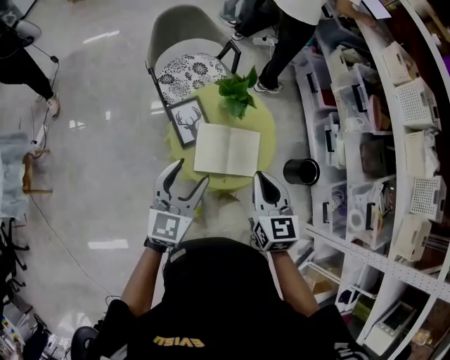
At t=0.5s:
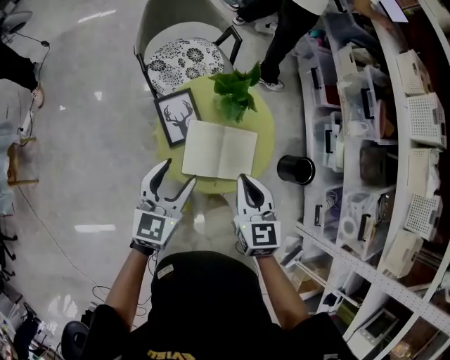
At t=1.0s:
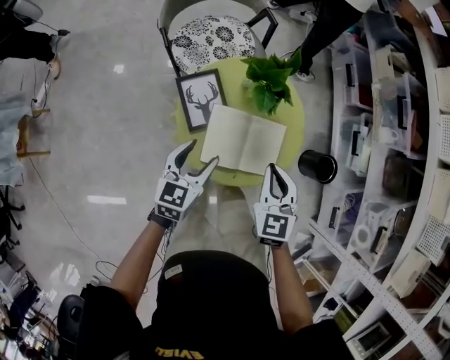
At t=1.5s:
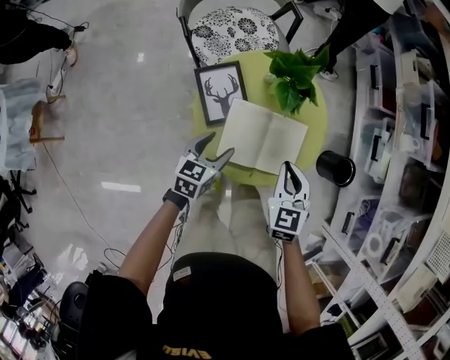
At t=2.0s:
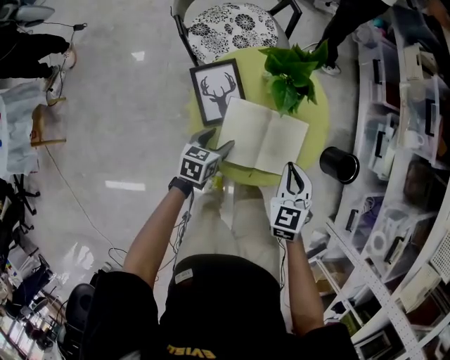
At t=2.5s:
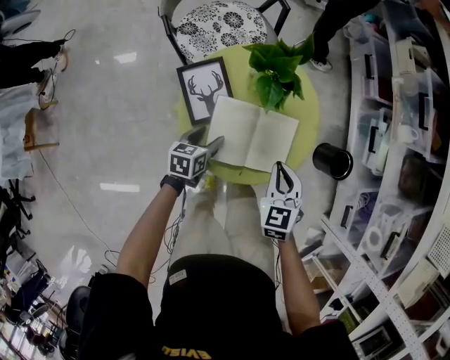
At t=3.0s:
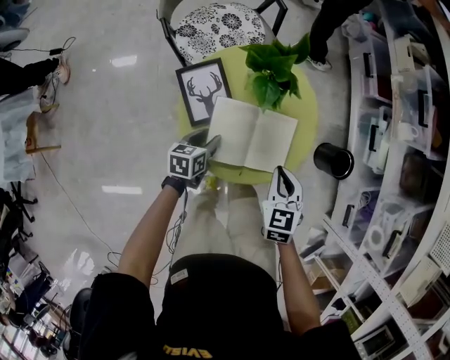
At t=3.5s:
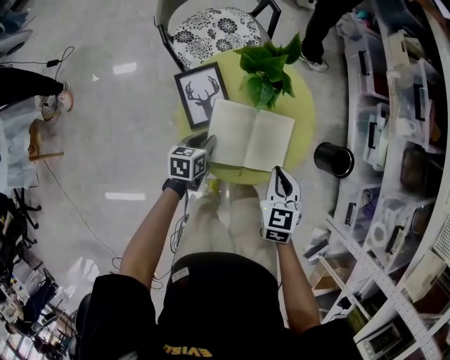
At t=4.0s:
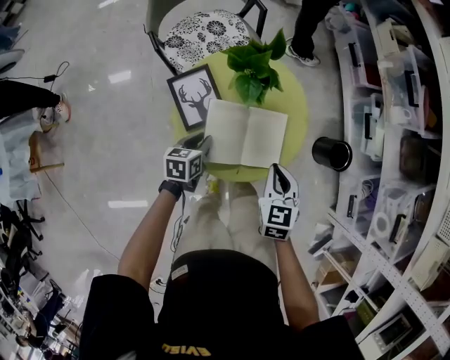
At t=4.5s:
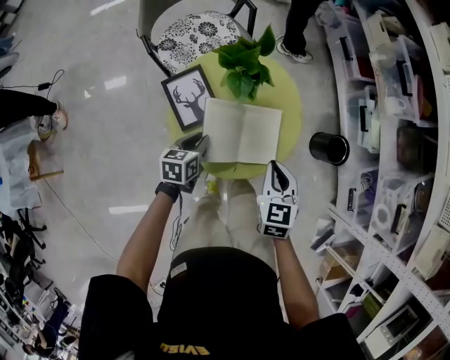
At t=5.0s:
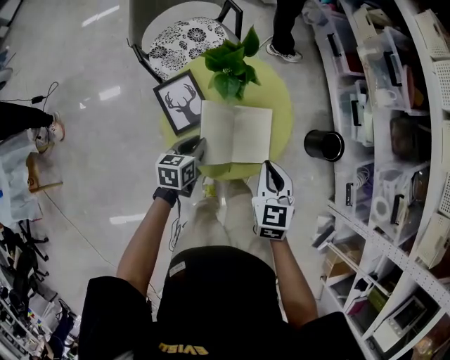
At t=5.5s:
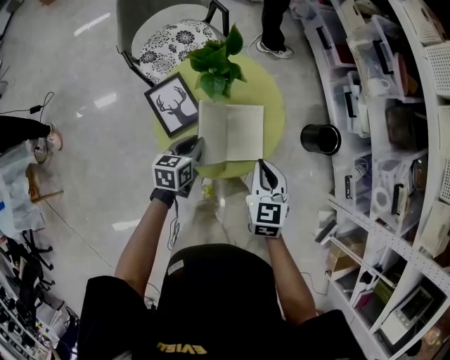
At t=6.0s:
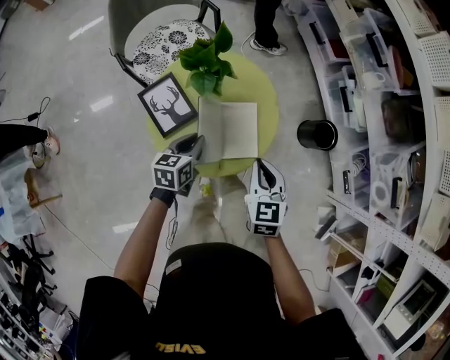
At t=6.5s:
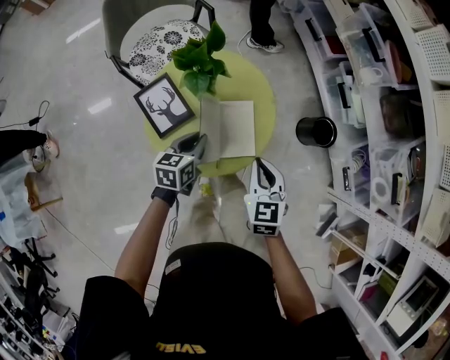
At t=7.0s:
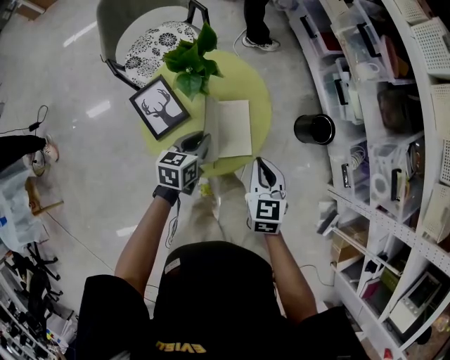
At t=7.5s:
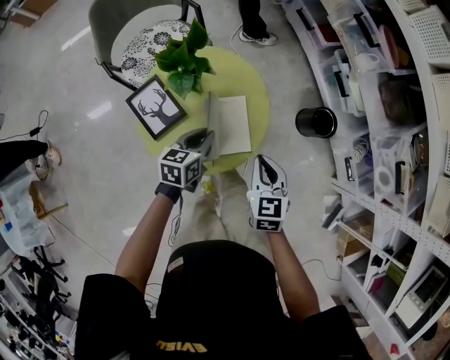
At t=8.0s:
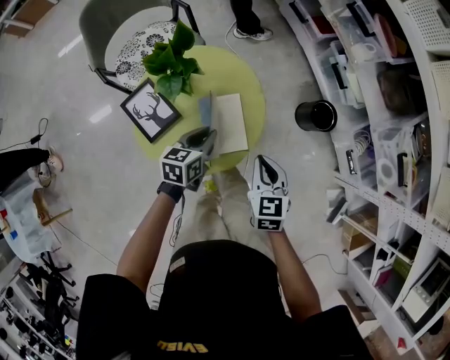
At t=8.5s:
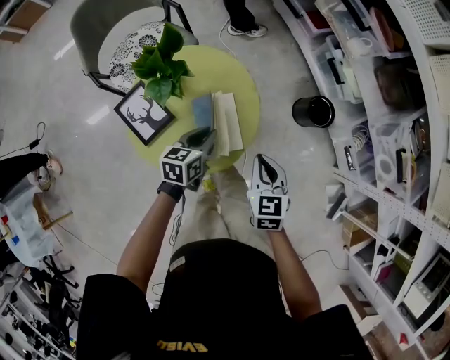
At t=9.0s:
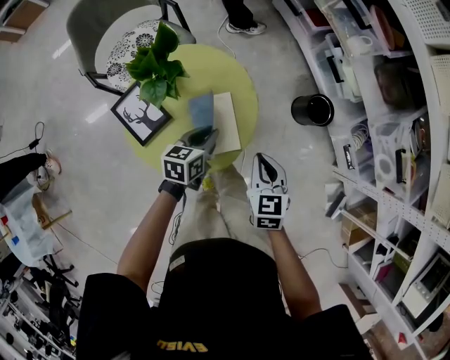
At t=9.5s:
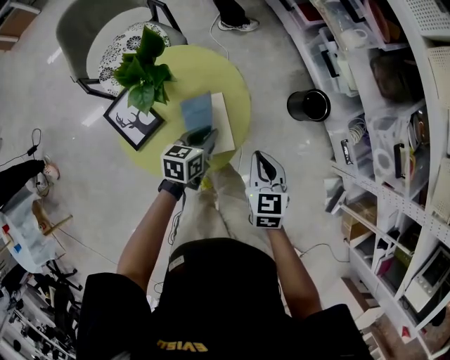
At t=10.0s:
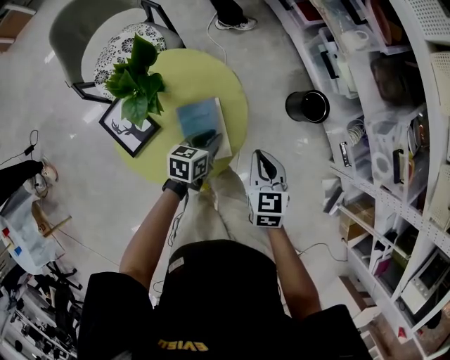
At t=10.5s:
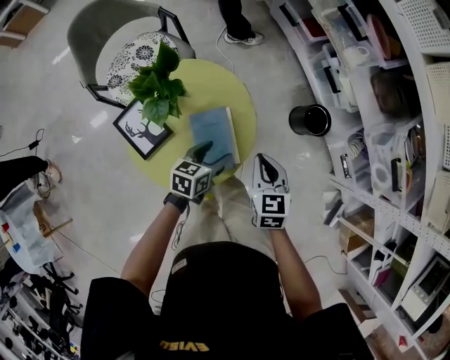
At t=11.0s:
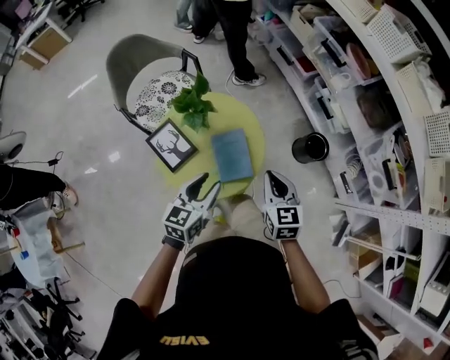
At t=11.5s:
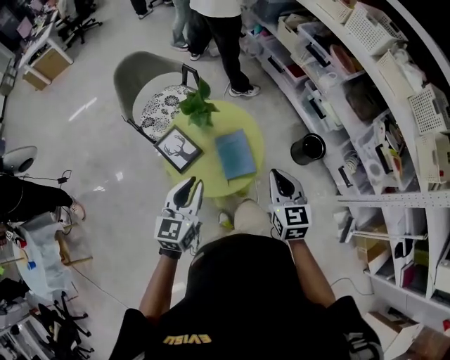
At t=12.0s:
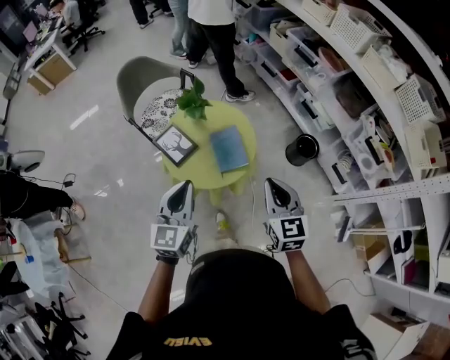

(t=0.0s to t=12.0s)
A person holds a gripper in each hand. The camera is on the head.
t=0.0s - t=2.0s: Both grippers move downward, some 30 cm. The right gripper rotates about 20 degrees; the left gripper swivels about 40 degrees.
t=2.0s - t=4.0s: The left gripper closes up.
t=4.0s - t=6.0s: The right gripper shifts by some 5 cm. Meanwhile the left gripper shifts about 10 cm upward and to the right.
t=6.0s - t=8.0s: The left gripper travels to the right by about 10 cm; the right gripper heads to the right, covering about 5 cm.
t=8.0s - t=10.0s: The right gripper goes some 5 cm forward; the left gripper travels to the right and downward by approximately 10 cm.
t=10.0s - t=12.0s: The grippers both shift upward and backward by about 40 cm. The right gripper rotates about 20 degrees; the left gripper changes its angle by some 50 degrees, and opens and closes again.

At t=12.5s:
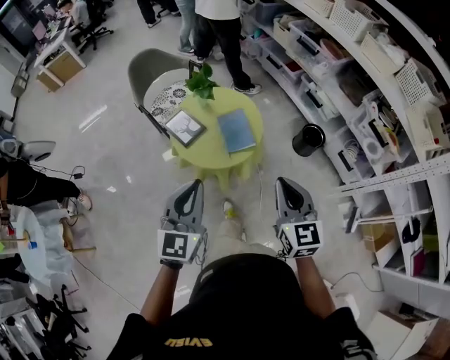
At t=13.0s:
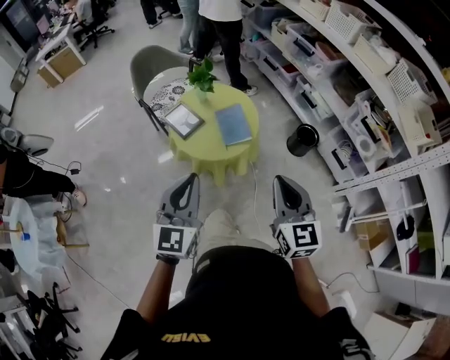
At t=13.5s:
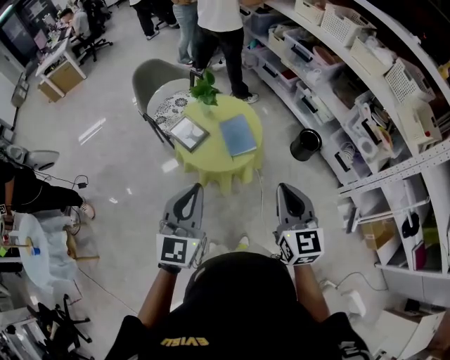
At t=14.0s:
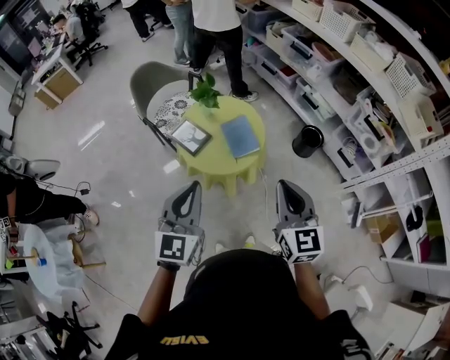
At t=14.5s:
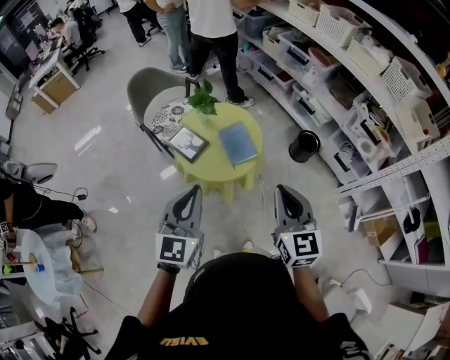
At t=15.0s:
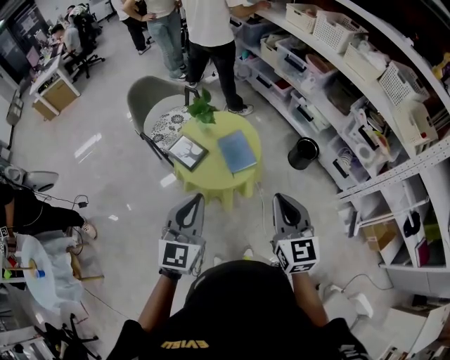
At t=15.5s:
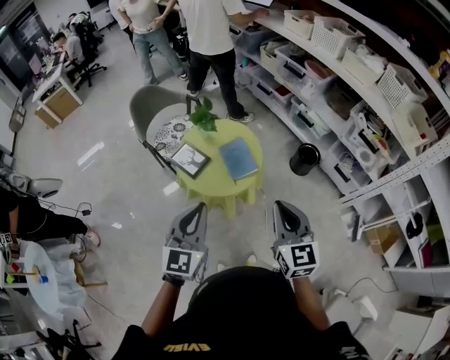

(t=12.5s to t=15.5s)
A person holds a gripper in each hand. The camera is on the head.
t=12.5s - t=14.0s: The left gripper shifts approximately 5 cm to the left; the right gripper goes approximately 5 cm upward.
t=14.0s - t=15.5s: The grippers move only a little.

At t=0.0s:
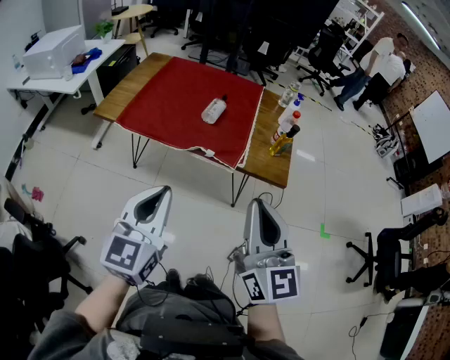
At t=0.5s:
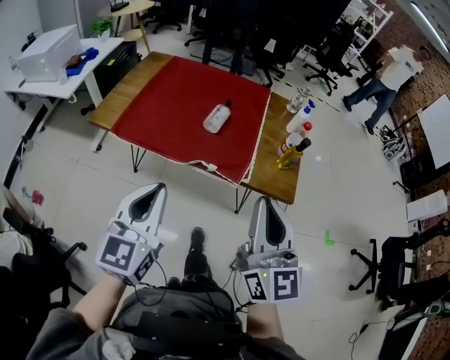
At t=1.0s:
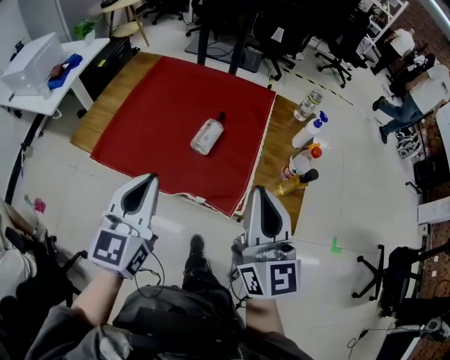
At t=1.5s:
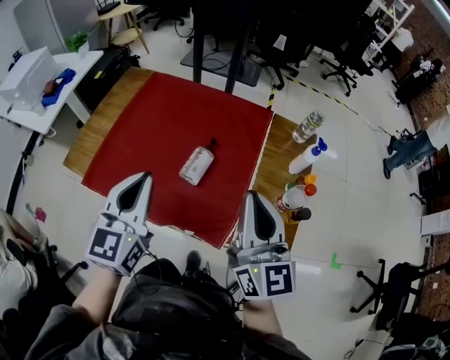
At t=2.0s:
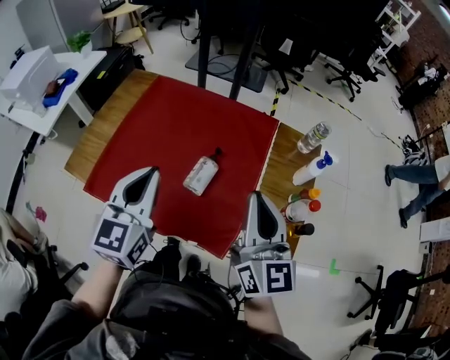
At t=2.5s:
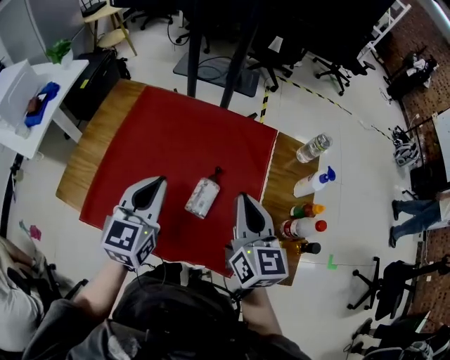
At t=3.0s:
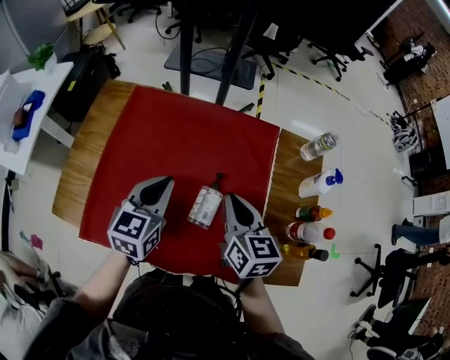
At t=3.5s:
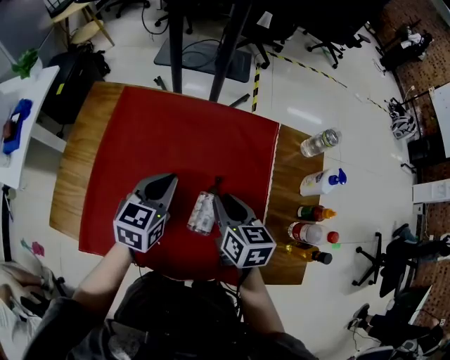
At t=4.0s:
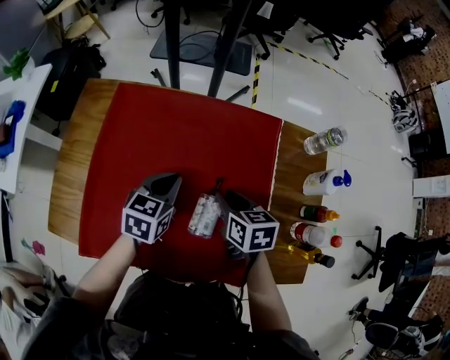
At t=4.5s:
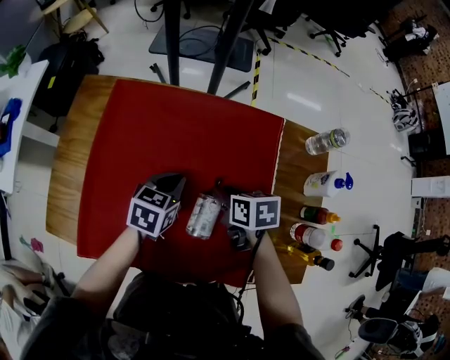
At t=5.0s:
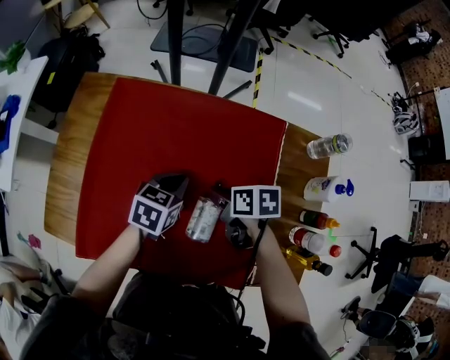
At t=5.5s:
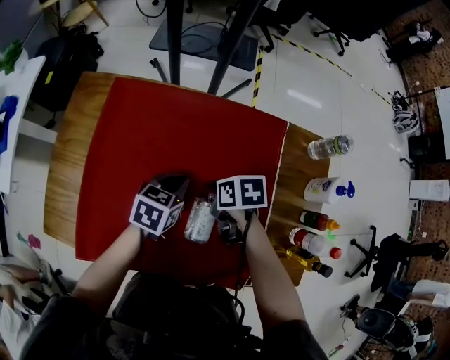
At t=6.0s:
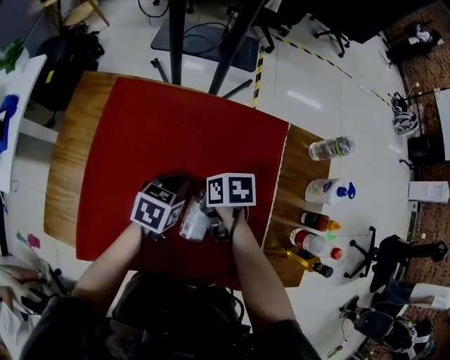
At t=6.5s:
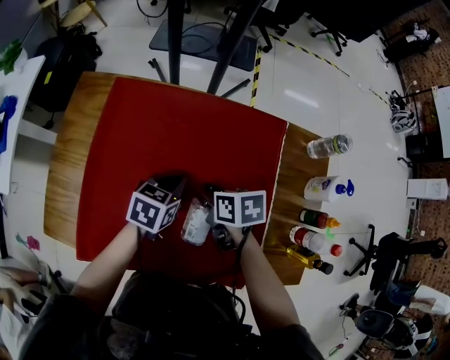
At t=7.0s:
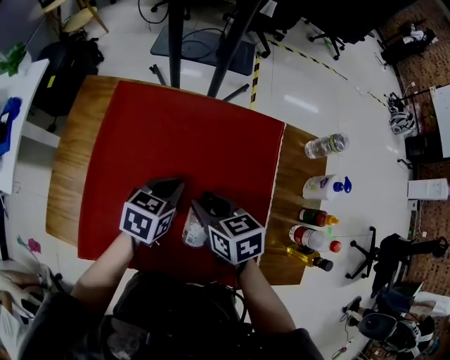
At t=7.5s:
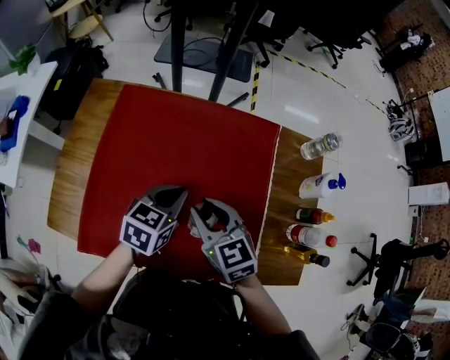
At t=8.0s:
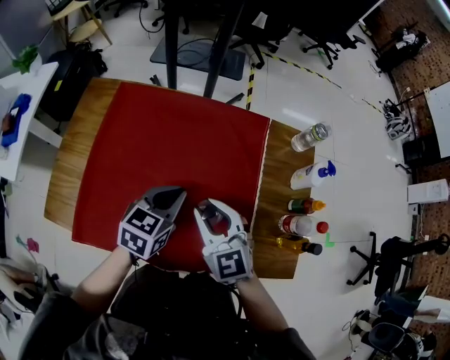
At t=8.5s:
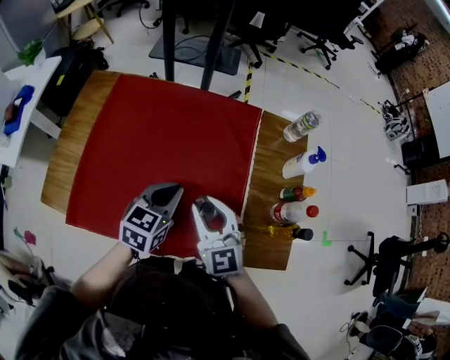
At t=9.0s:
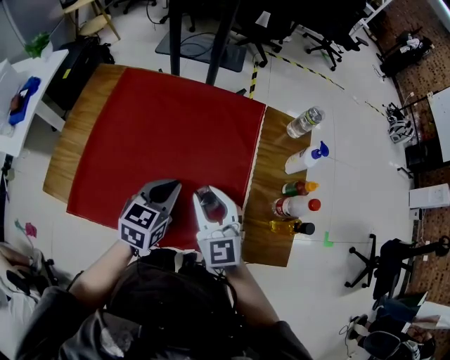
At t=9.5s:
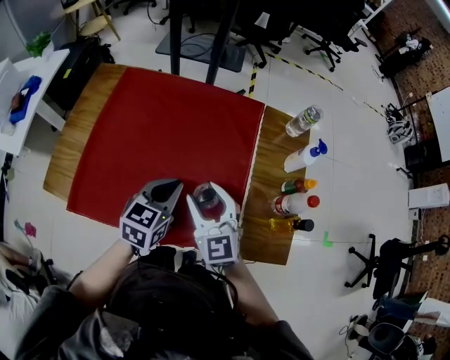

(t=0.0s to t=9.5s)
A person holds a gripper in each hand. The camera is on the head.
t=0.0s - t=2.0s: Both grippers are carried forward, about 50 cm.
t=2.0s - t=4.0s: The left gripper heads forward and downward, covering approximately 35 cm, and swivels about 40 degrees; the right gripper moves downward, forward and to the left, about 35 cm, and tips its fingers downward by some 50 degrees.
t=4.0s - t=5.5s: Both grippers travel together downward, approximately 5 cm. The right gripper turns by approximately 30 degrees.
t=5.5s - t=7.5s: The left gripper moves upward and backward, roughly 10 cm, while the right gripper moves upward and backward, roughly 15 cm, and angles its fingers upward, by some 30 degrees.
t=7.5s - t=9.5s: Both grippers move backward and to the right, some 15 cm. The right gripper turns by roughly 20 degrees.

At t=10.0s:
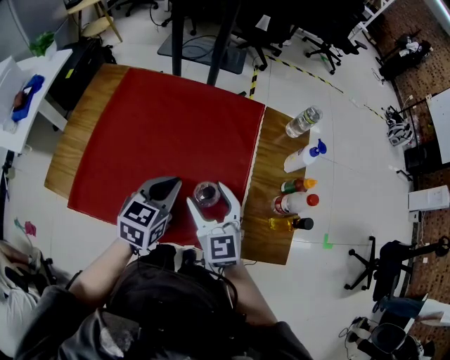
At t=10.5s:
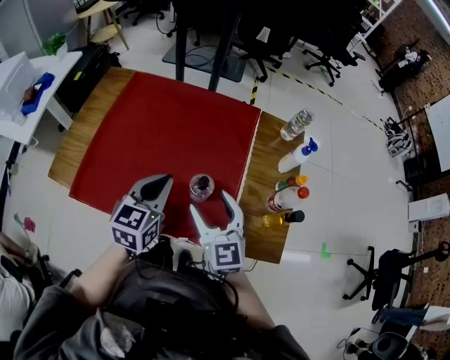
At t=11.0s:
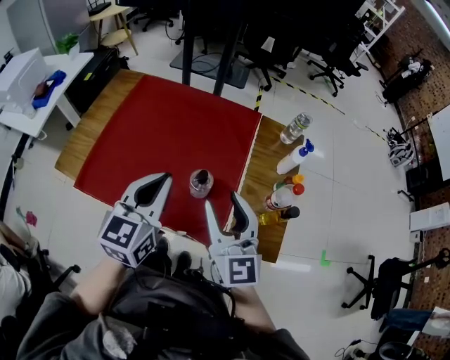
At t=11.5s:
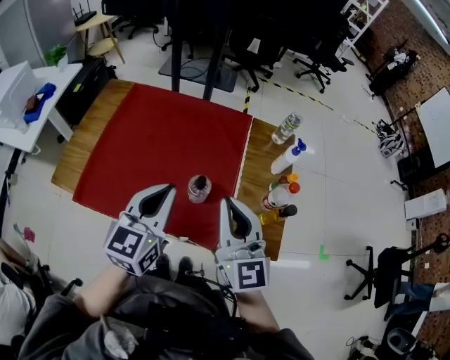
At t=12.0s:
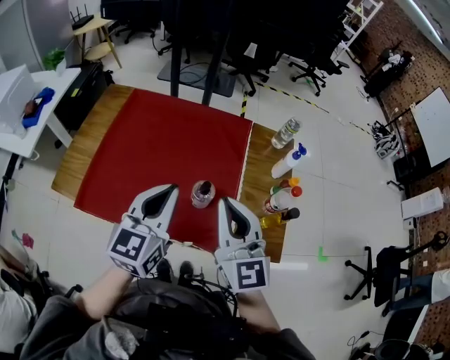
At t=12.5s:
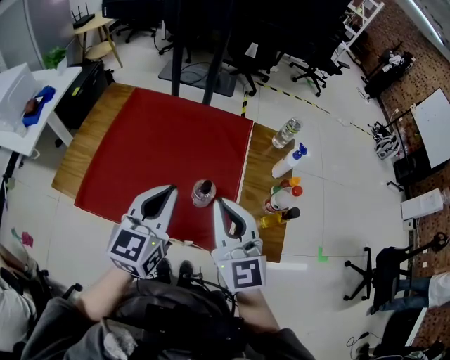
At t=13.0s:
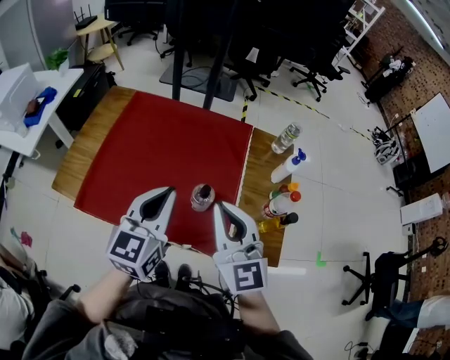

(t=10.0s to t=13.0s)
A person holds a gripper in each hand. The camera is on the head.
t=10.0s - t=11.5s: Both grippers move upward and backward, some 20 cm. The right gripper closes.
t=11.5s - t=13.0s: The grippers make only small movements.
